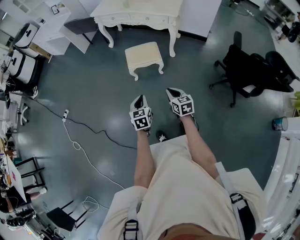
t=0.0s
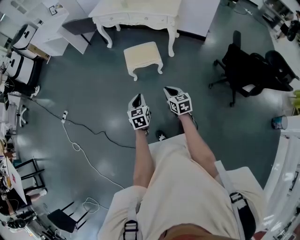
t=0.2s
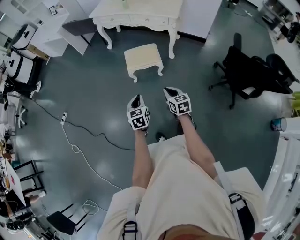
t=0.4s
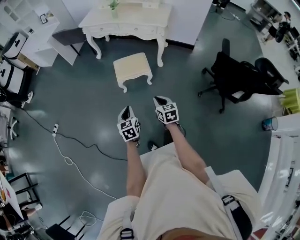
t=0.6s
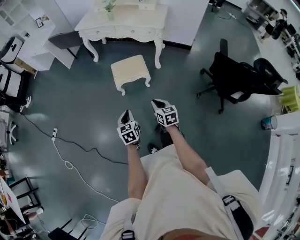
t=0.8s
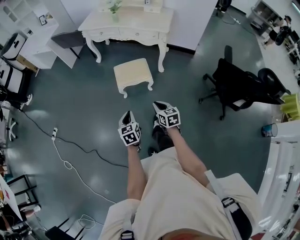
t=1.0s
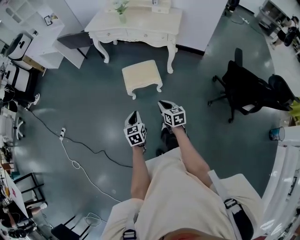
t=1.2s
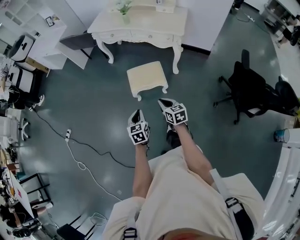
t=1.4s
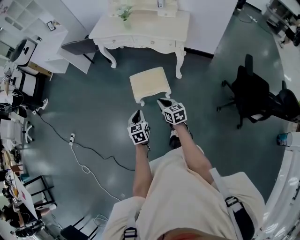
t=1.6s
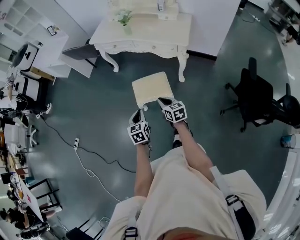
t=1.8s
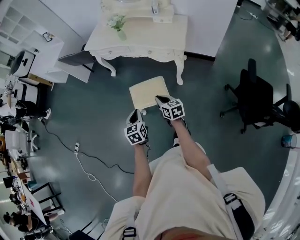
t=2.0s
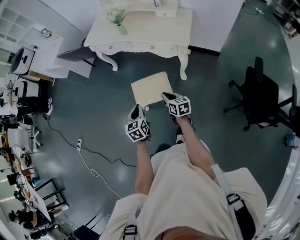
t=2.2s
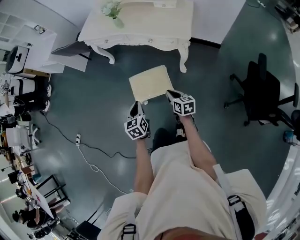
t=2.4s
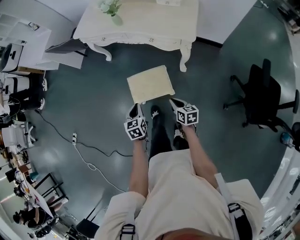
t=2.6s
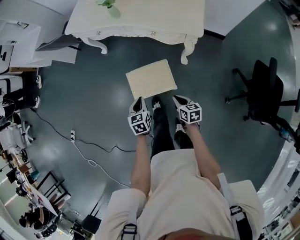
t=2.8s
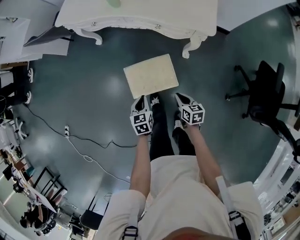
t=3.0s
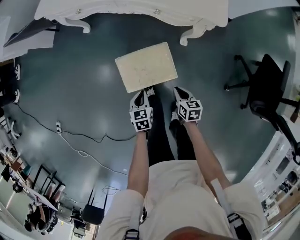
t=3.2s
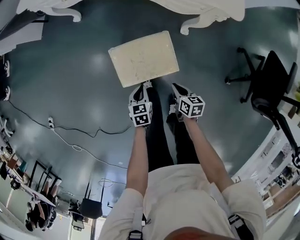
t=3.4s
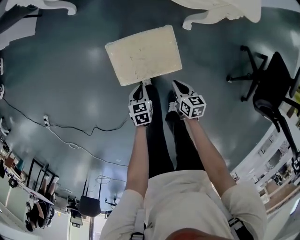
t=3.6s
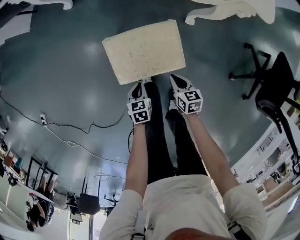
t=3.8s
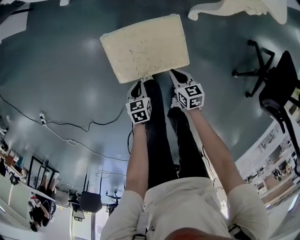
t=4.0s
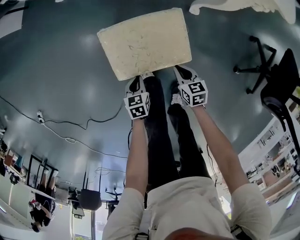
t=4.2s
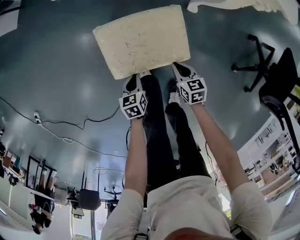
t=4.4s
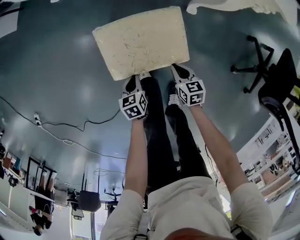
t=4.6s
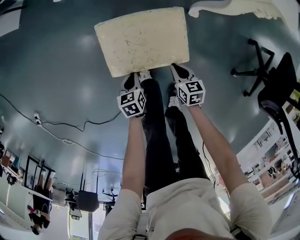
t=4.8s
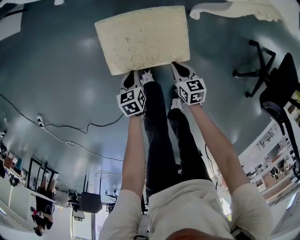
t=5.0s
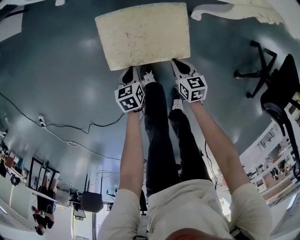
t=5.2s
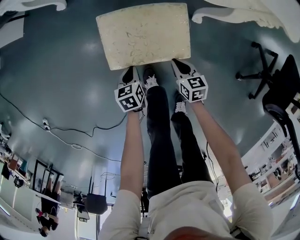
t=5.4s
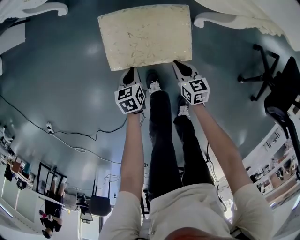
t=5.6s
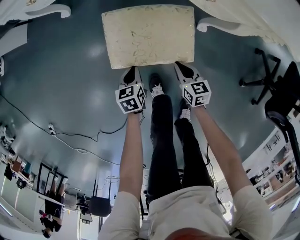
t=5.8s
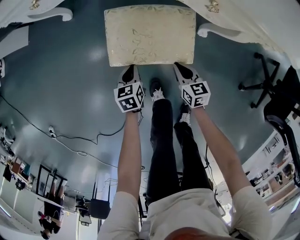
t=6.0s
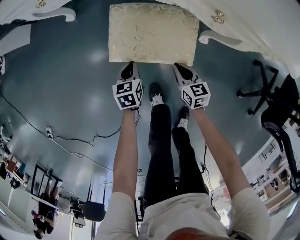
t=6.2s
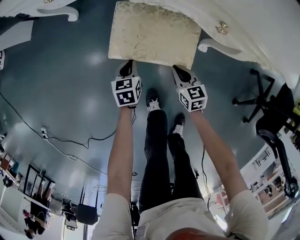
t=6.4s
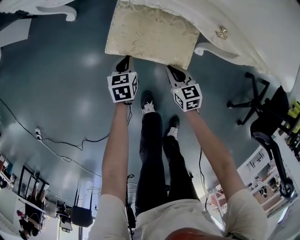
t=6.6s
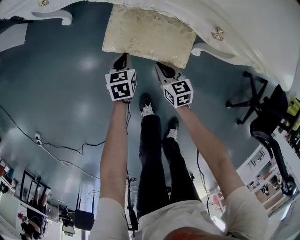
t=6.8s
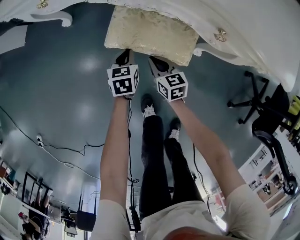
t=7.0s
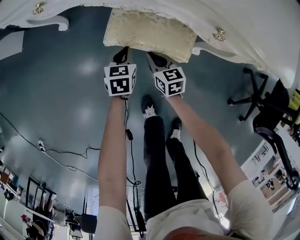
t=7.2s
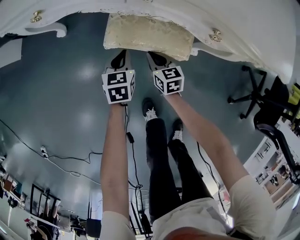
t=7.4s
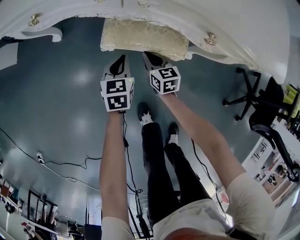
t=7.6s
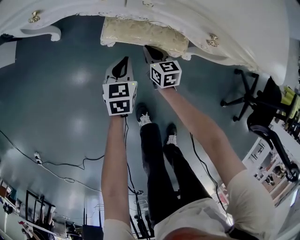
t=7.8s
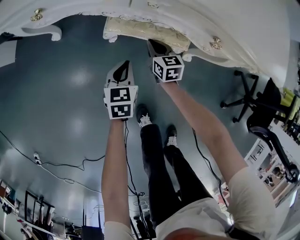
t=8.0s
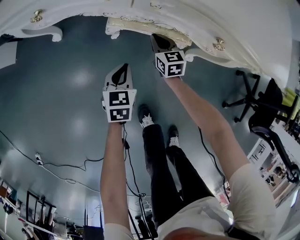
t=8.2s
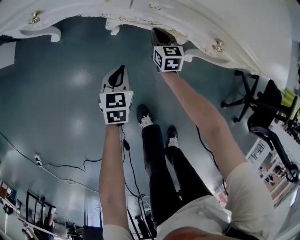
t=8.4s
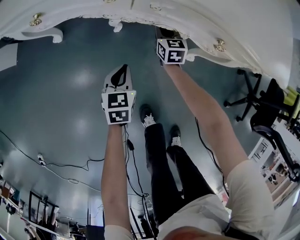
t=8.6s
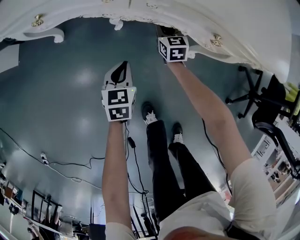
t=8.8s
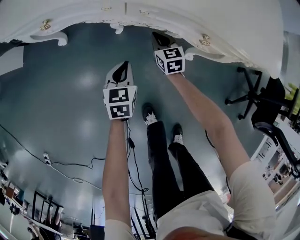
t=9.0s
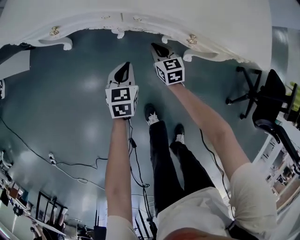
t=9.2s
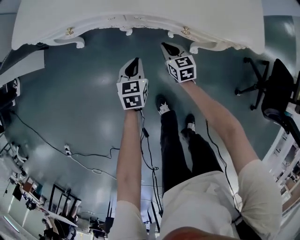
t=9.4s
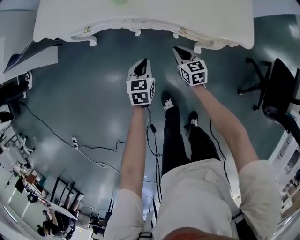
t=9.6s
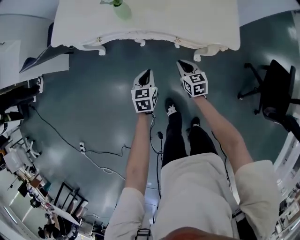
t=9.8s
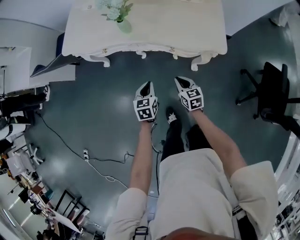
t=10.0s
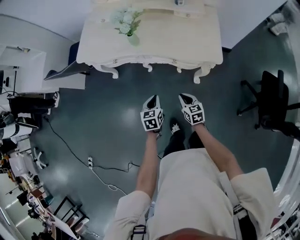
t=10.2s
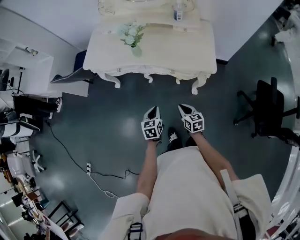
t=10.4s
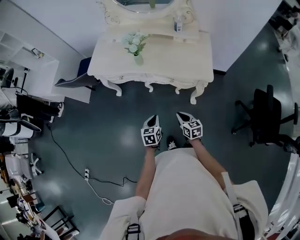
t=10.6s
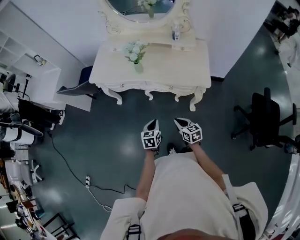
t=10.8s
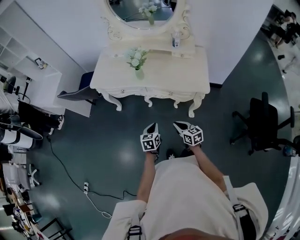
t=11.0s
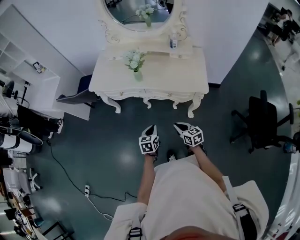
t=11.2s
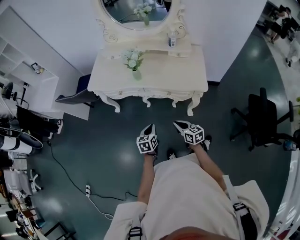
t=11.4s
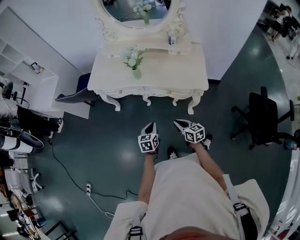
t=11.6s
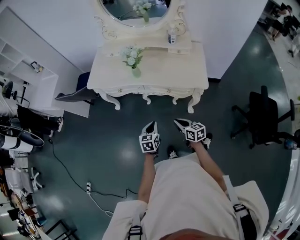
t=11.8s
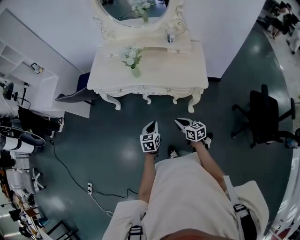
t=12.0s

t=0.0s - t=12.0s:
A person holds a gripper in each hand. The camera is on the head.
t=0.0s - t=1.6s: The two grippers go approximately 25 cm forward.
t=1.6s - t=3.0s: The left gripper shifts some 35 cm forward and downward. The right gripper shifts some 30 cm downward, forward and to the right, and turns by about 20 degrees.
t=3.0s - t=4.4s: Both grippers travel together downward, about 30 cm.
t=4.4s - t=6.0s: Both grippers travel together forward, some 20 cm.
t=6.0s - t=7.6s: Both grippers travel together forward, roughly 15 cm.
t=7.6s - t=9.0s: The right gripper heads forward, covering about 10 cm, while the left gripper shifts by about 5 cm.
t=9.0s - t=10.4s: Both grippers travel together upward and backward, about 50 cm.
t=10.4s - t=12.0s: The right gripper is displaced upward by about 5 cm.

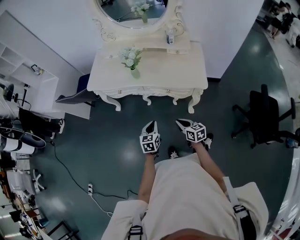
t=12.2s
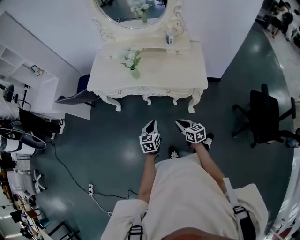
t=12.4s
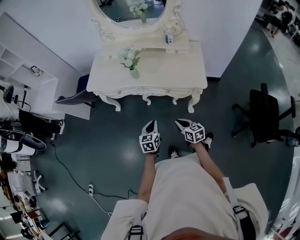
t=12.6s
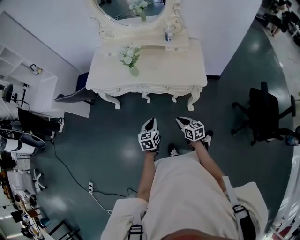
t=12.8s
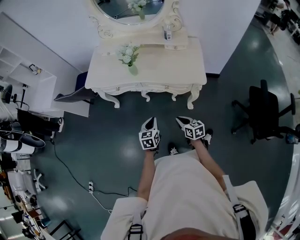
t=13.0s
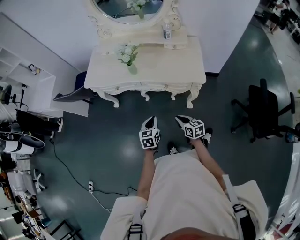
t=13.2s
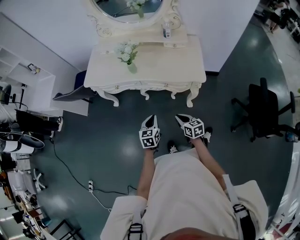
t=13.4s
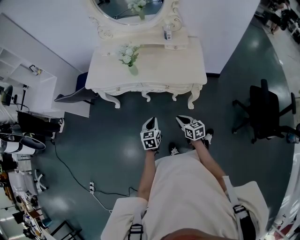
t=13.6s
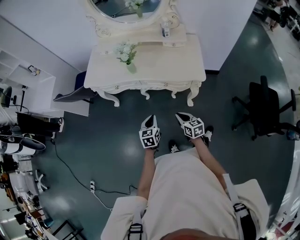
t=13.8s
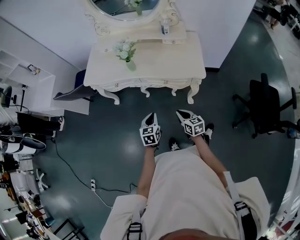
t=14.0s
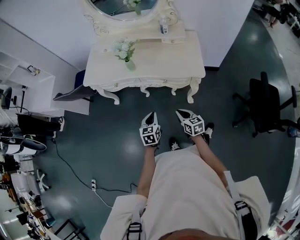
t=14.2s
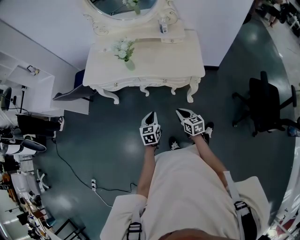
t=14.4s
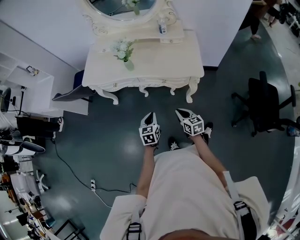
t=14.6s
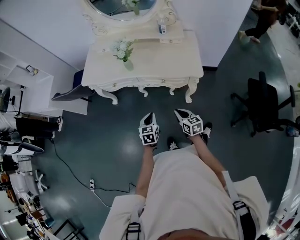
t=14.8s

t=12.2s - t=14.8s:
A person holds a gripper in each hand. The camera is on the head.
t=12.2s - t=14.8s: There are only small adjustments of the grippers.

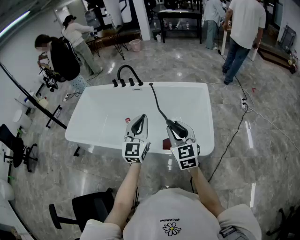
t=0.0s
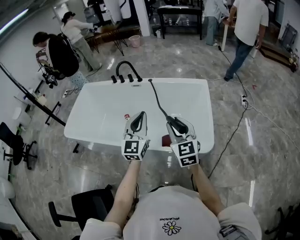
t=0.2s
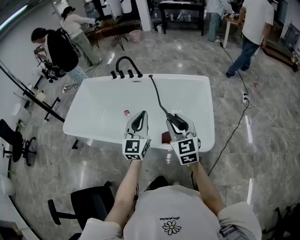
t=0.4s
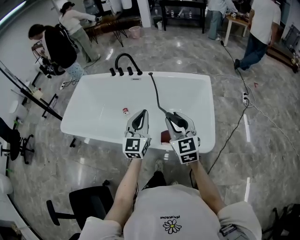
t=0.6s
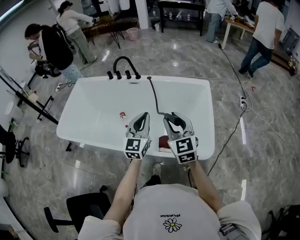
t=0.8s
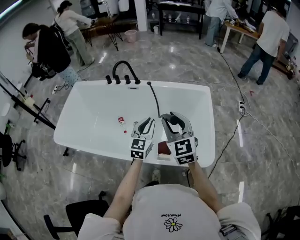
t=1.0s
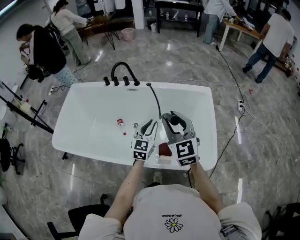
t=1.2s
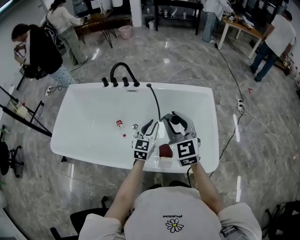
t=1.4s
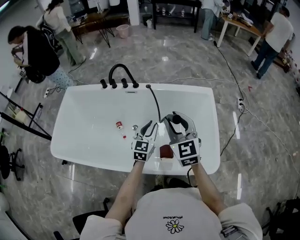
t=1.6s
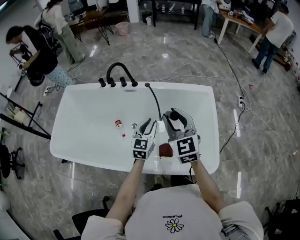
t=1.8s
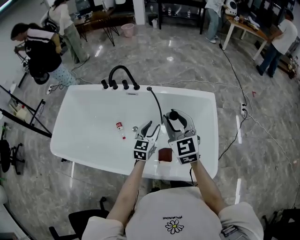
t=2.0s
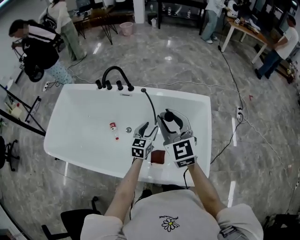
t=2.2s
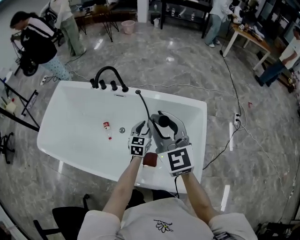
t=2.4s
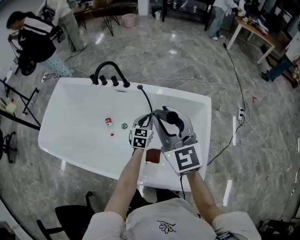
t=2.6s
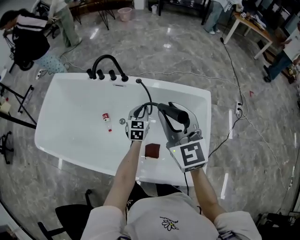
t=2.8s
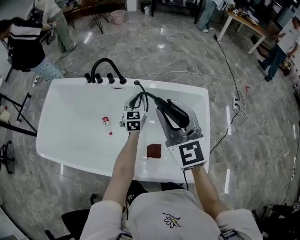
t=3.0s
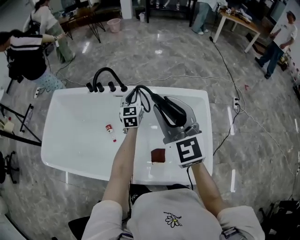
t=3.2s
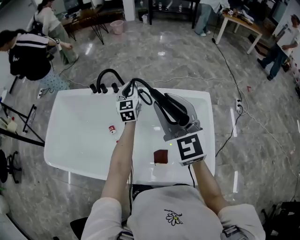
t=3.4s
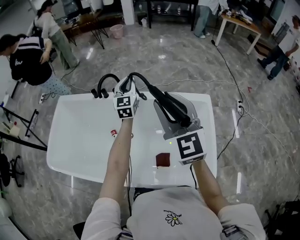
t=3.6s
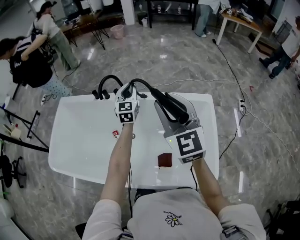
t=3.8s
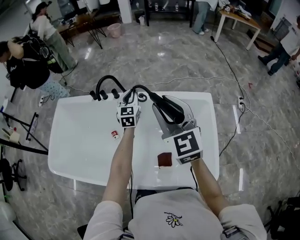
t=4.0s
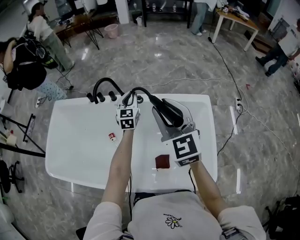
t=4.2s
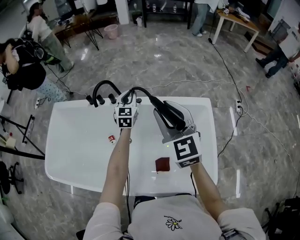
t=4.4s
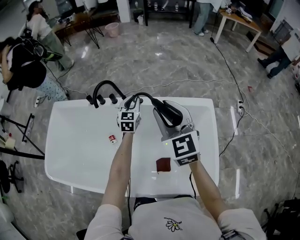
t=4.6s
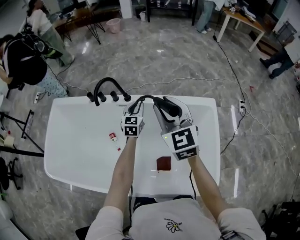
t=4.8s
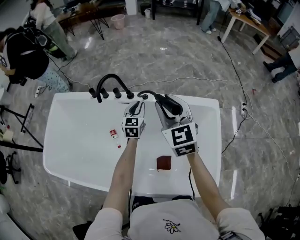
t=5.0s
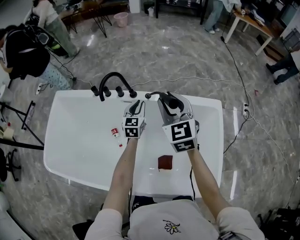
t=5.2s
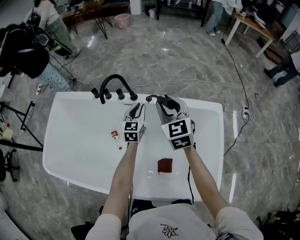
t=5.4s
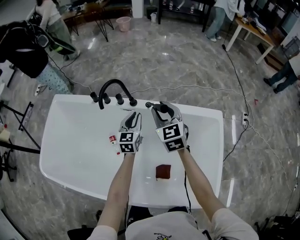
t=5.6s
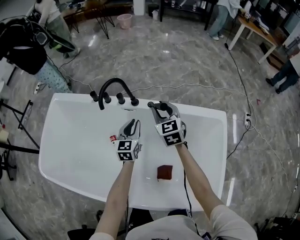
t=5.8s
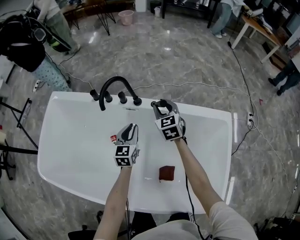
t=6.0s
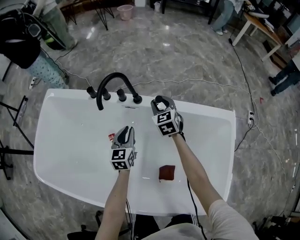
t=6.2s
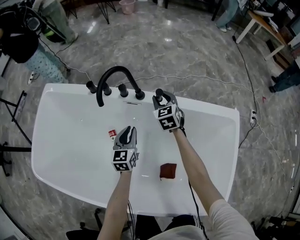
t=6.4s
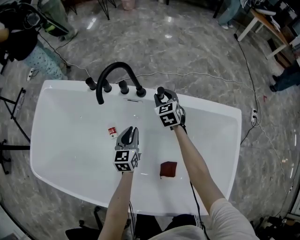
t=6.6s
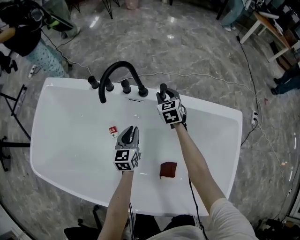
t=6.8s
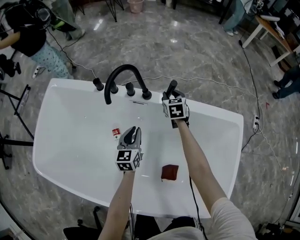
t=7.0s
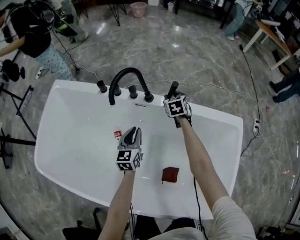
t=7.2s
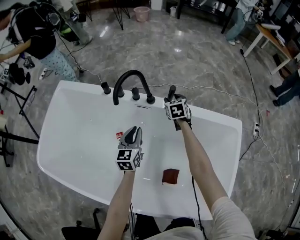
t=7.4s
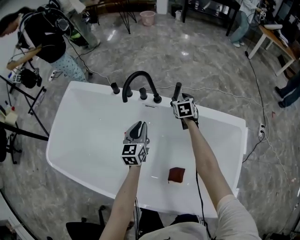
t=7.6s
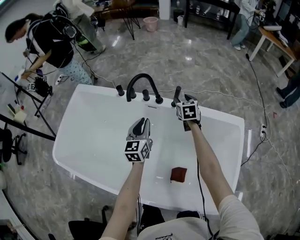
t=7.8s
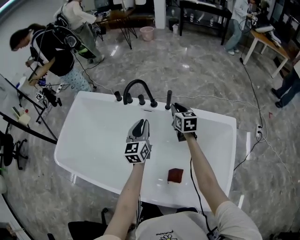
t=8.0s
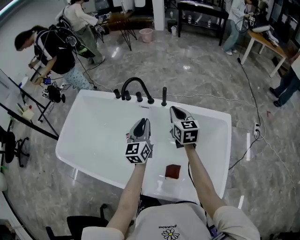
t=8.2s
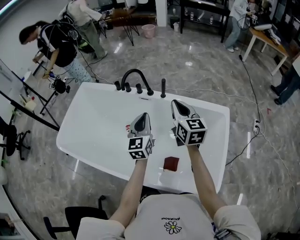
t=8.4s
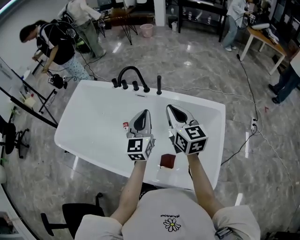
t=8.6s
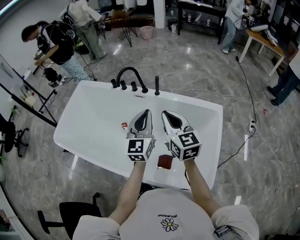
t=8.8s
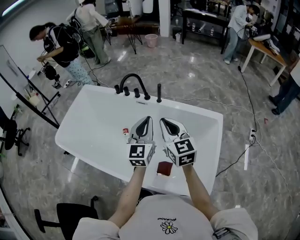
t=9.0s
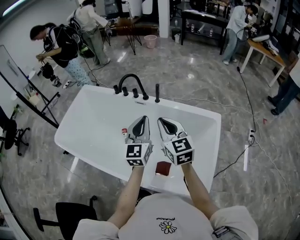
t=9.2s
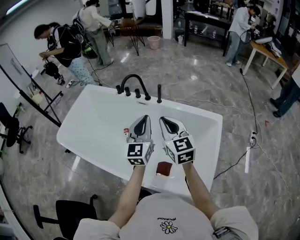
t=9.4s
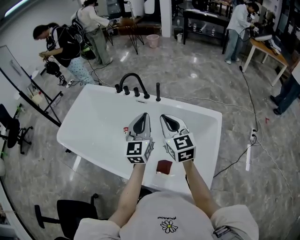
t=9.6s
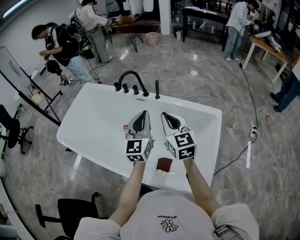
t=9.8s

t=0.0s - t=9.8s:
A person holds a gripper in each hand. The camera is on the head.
t=0.0s - t=1.4s: The left gripper moves forward and downward, approximately 30 cm, and rotates some 20 degrees, while the right gripper travels forward by approximately 25 cm.
t=1.4s - t=2.8s: The right gripper moves forward, approximately 10 cm. Meanwhile the left gripper is displaced forward and downward by about 20 cm, and opens and closes again.
t=2.8s - t=4.2s: The left gripper travels forward and upward by some 20 cm; the right gripper moves forward, approximately 5 cm.
t=4.2s - t=5.6s: The left gripper goes roughly 10 cm downward and to the left, while the right gripper heads forward and downward, covering roughly 25 cm.
t=5.6s - t=7.0s: The right gripper is displaced downward and forward by about 30 cm, and rotates some 20 degrees. The left gripper travels downward and to the left by approximately 15 cm.
t=7.0s - t=8.4s: Both grippers travel together upward and backward, some 40 cm. The right gripper swivels about 30 degrees, and closes. The left gripper rotates roughly 20 degrees.
t=8.4s - t=9.8s: The left gripper is displaced backward, upward and to the right by some 15 cm. Meanwhile the right gripper is displaced backward by about 10 cm.
